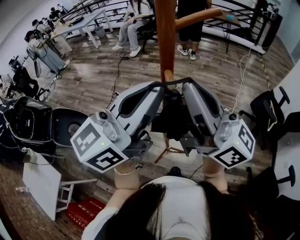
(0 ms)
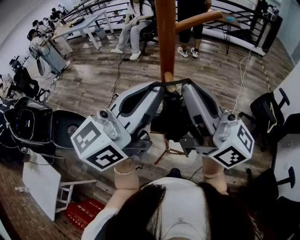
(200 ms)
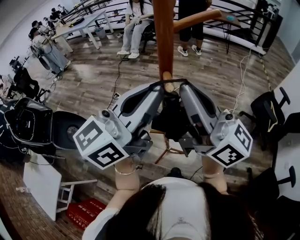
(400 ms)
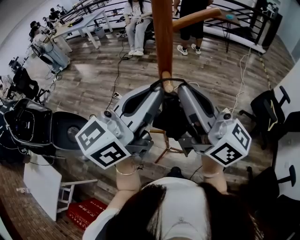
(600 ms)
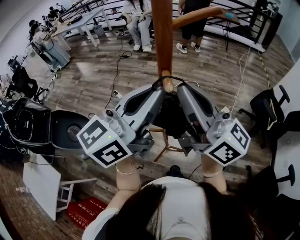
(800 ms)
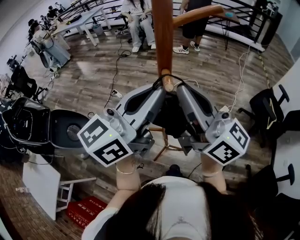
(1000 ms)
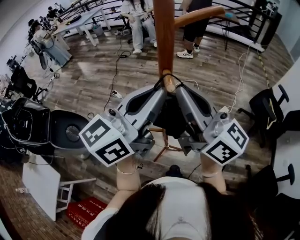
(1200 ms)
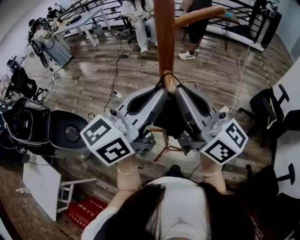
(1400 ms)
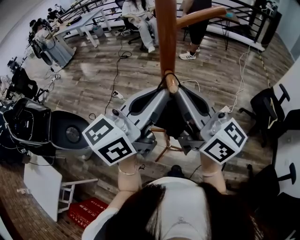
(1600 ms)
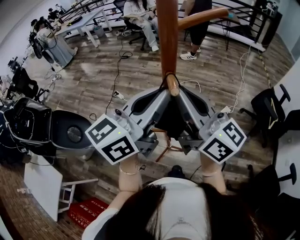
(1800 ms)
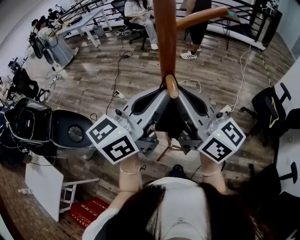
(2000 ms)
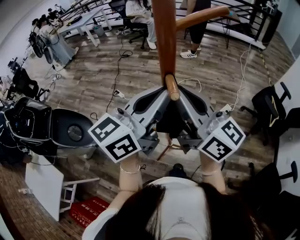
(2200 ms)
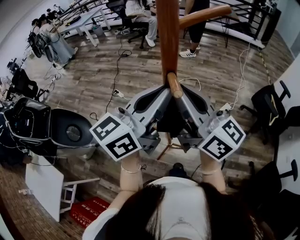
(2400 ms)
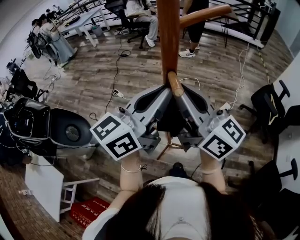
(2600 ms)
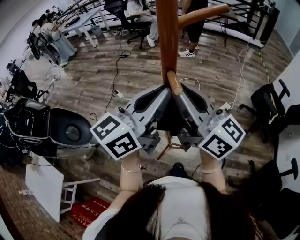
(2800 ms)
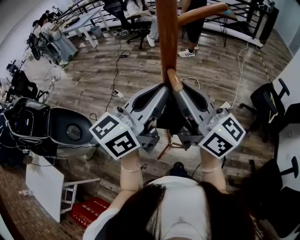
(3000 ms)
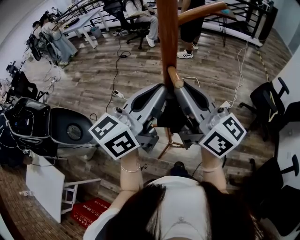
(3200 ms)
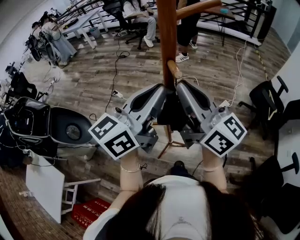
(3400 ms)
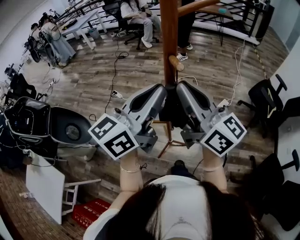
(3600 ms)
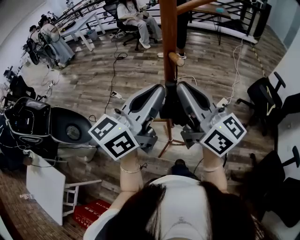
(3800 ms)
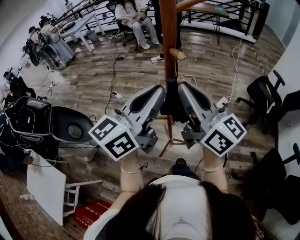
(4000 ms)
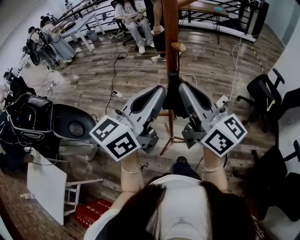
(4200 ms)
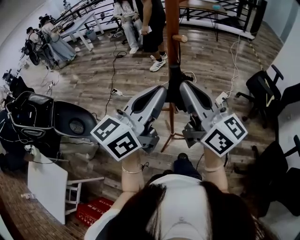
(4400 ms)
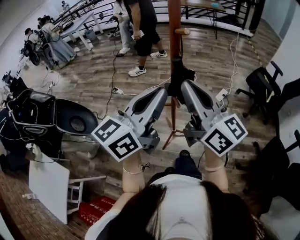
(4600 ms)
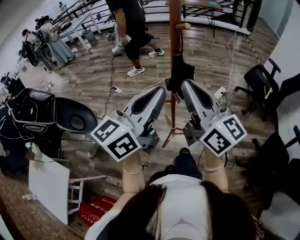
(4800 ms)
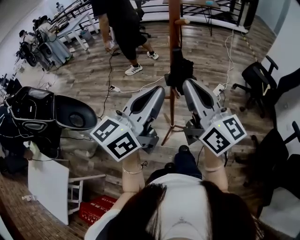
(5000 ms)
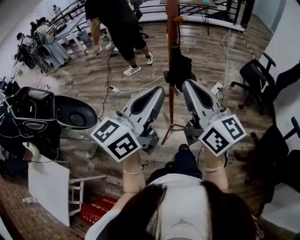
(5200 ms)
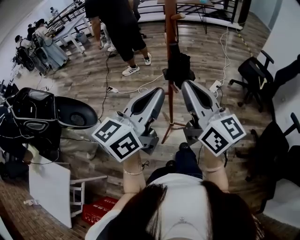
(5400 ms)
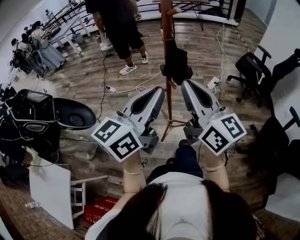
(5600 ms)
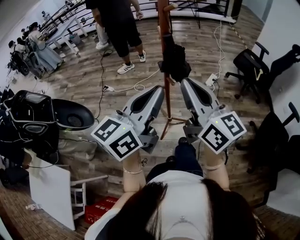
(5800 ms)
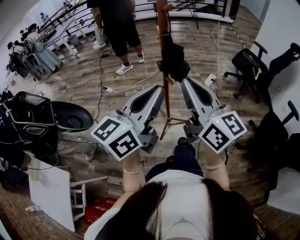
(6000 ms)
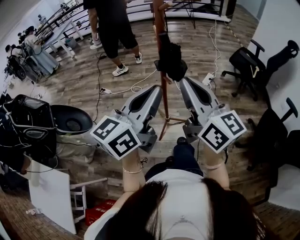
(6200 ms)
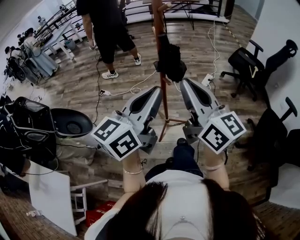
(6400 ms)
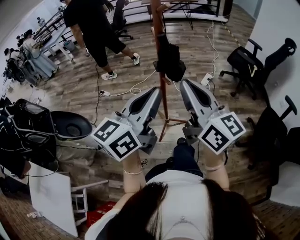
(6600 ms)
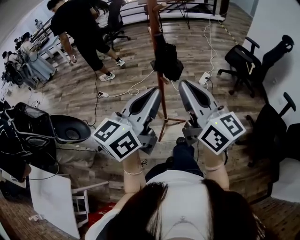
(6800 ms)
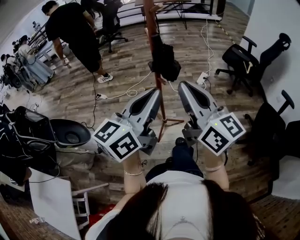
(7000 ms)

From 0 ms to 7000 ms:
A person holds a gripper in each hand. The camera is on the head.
From 0 ms to 1400 ms: The right gripper heads downward, covering approximately 5 cm. The left gripper shifts by roughly 5 cm.
From 1400 ms to 2800 ms: The grippers make only small movements.
From 2800 ms to 4200 ms: The grippers both shift backward by about 10 cm.
From 4200 ms to 5600 ms: Both grippers travel together backward, roughly 15 cm.
From 5600 ms to 7000 ms: The grippers stay close to where they were, moving slightly.

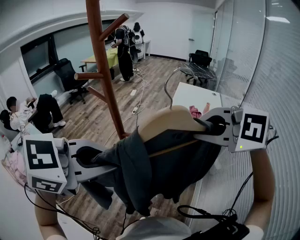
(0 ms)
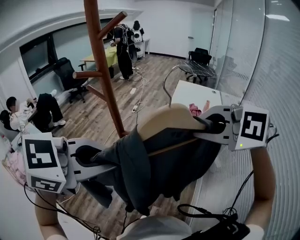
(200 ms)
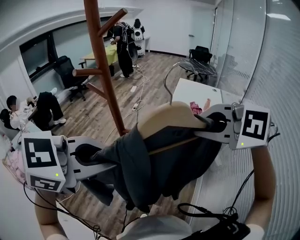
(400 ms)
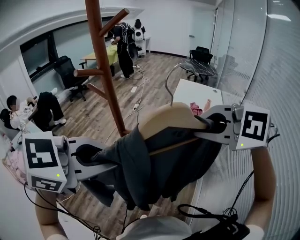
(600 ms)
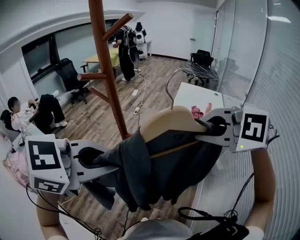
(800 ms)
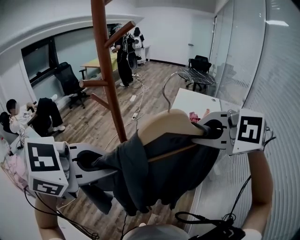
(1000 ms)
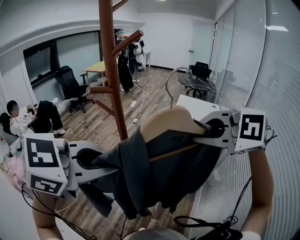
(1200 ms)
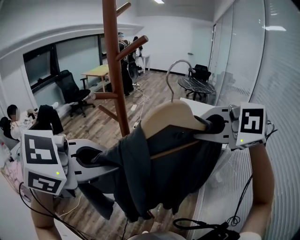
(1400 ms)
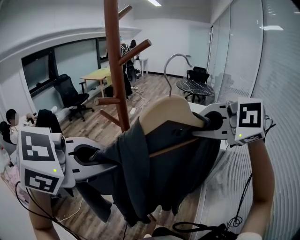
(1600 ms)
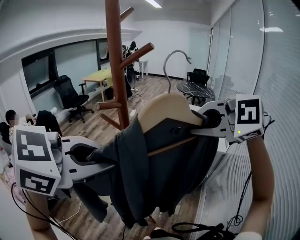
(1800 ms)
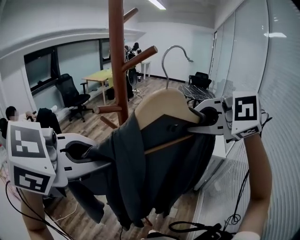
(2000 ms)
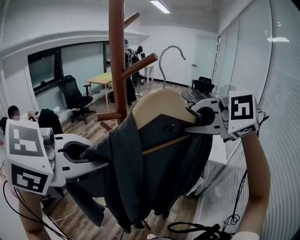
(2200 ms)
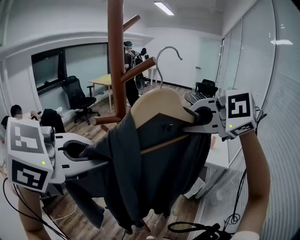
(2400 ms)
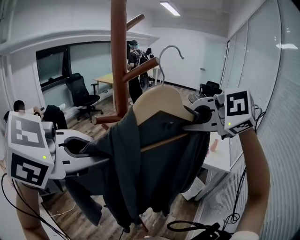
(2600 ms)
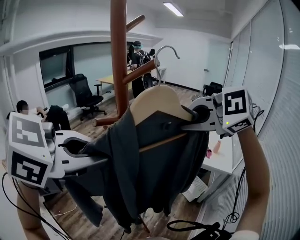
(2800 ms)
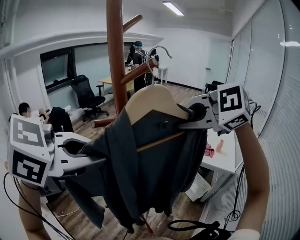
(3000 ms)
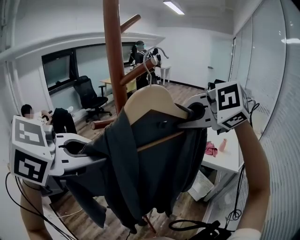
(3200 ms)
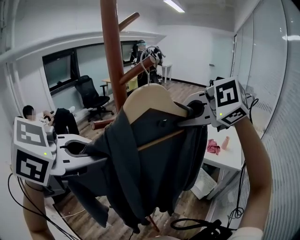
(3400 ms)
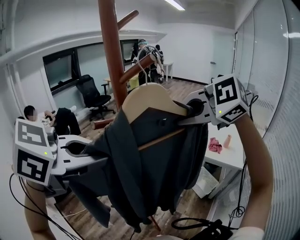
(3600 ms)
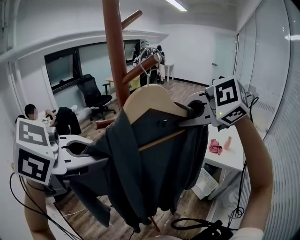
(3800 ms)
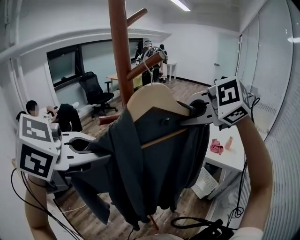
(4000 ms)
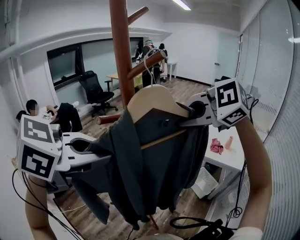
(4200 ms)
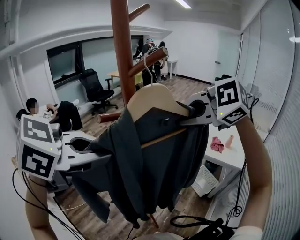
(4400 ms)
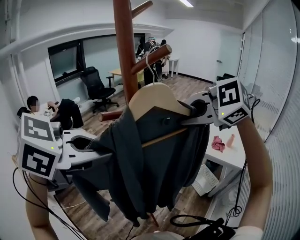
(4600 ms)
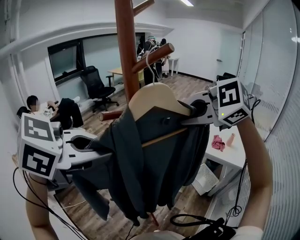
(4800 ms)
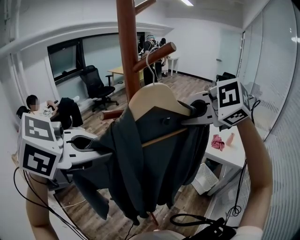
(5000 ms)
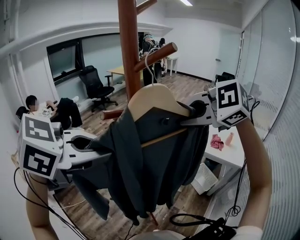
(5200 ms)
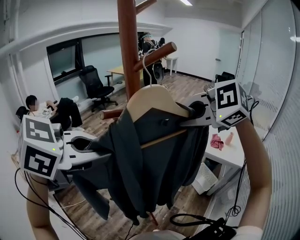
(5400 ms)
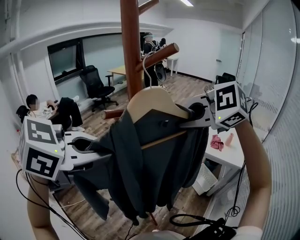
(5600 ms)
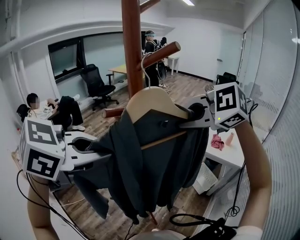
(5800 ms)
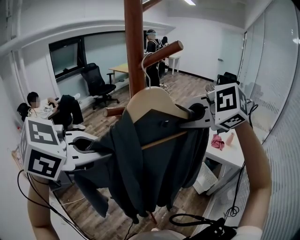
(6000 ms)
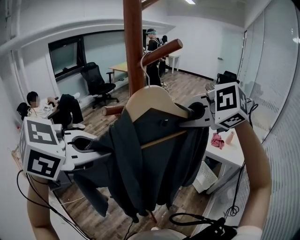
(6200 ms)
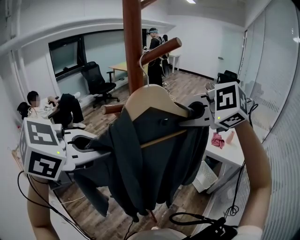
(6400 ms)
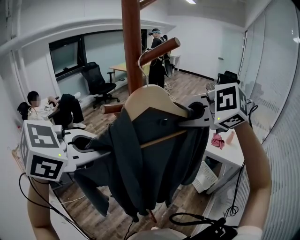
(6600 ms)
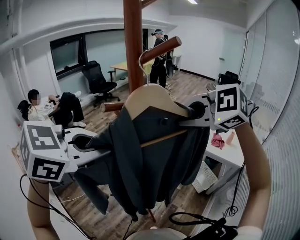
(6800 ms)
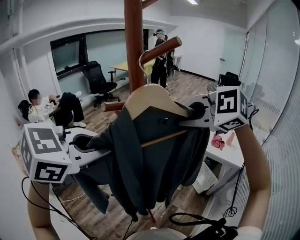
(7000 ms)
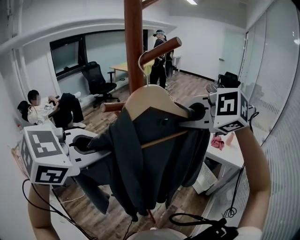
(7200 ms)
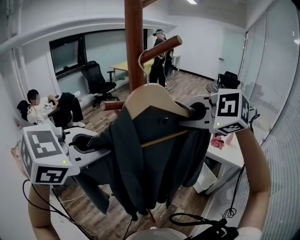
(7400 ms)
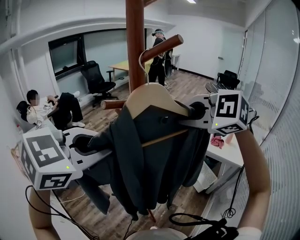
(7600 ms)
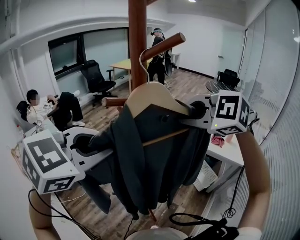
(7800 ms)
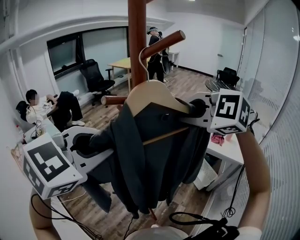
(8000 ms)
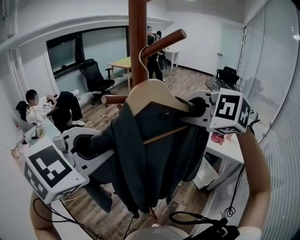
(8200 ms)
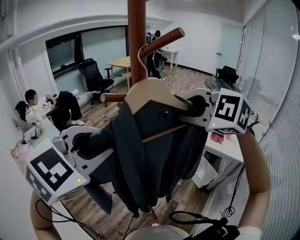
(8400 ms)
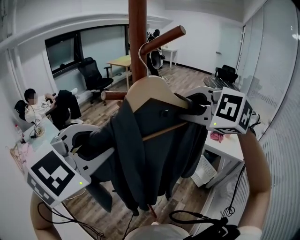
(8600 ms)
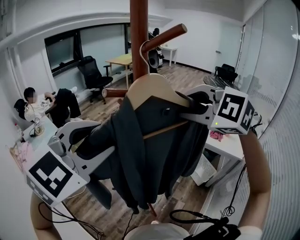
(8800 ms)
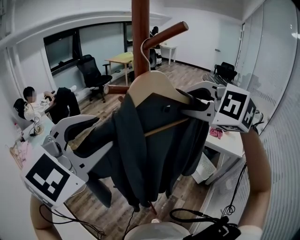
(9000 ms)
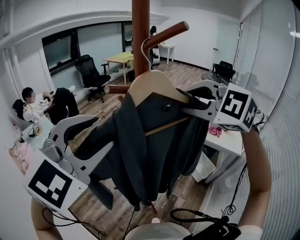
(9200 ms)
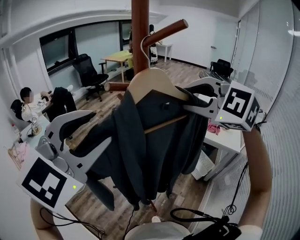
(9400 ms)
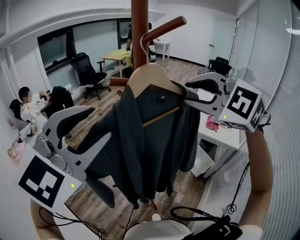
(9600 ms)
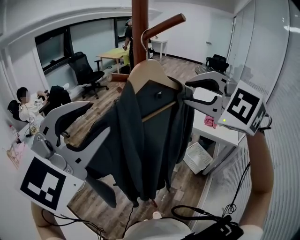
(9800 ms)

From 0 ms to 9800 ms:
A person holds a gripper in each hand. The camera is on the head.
From 0 ms to 1400 ms: The left gripper changes place by approximately 5 cm. The right gripper ends up approximately 5 cm from where it was.
From 1400 ms to 2800 ms: The left gripper moves about 5 cm. Meanwhile the right gripper travels forward and to the left by roughly 10 cm.
From 2800 ms to 4200 ms: The grippers make only small movements.
From 4200 ms to 5600 ms: Neither gripper changes place.
From 5600 ms to 7000 ms: The grippers stay close to where they were, moving slightly.
From 7000 ms to 8400 ms: There are only small adjustments of the grippers.
From 8400 ms to 9800 ms: The right gripper moves backward, some 5 cm, while the left gripper is displaced upward by approximately 5 cm, rotates roughly 20 degrees, and opens.

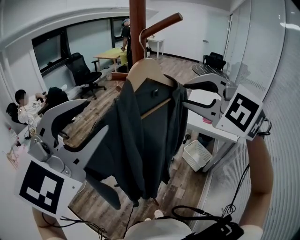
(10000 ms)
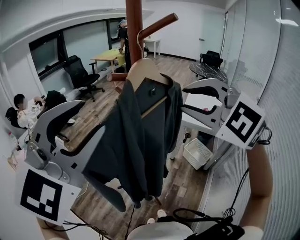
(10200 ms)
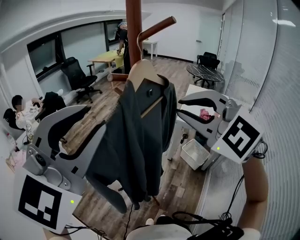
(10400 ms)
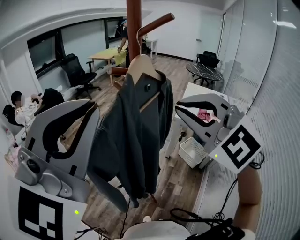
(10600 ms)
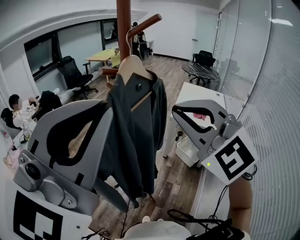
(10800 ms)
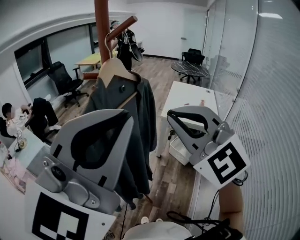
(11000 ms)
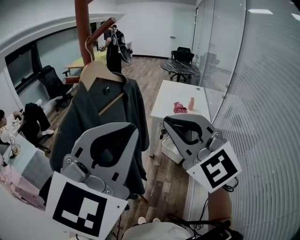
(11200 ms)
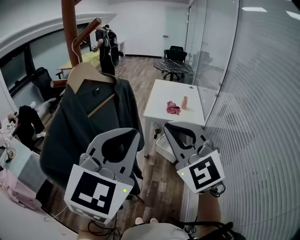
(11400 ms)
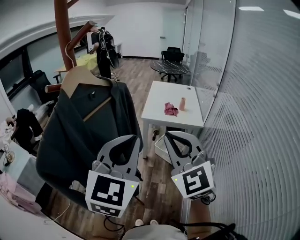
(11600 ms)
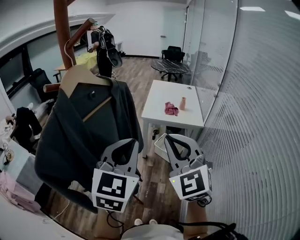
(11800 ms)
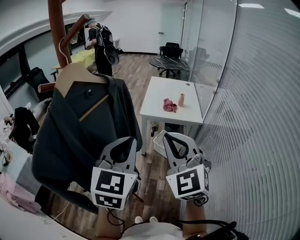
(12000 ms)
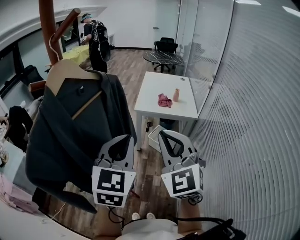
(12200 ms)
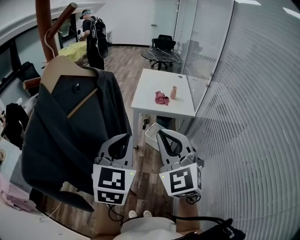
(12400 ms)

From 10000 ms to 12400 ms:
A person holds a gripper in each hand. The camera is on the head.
From 10000 ms to 11200 ms: The left gripper goes some 15 cm to the right, changes its angle by some 30 degrees, and closes, while the right gripper shifts about 10 cm backward, swivels about 30 degrees, and closes up.
From 11200 ms to 12400 ms: The right gripper goes about 10 cm downward, and turns by some 30 degrees. Meanwhile the left gripper heads downward and forward, covering approximately 15 cm.

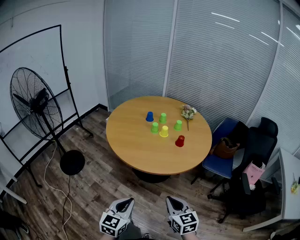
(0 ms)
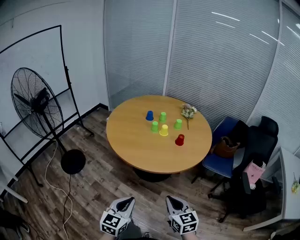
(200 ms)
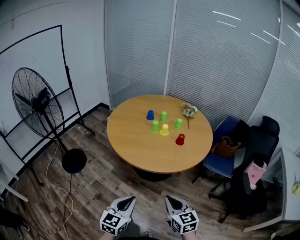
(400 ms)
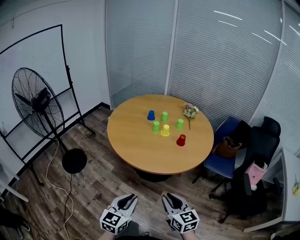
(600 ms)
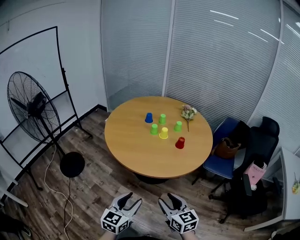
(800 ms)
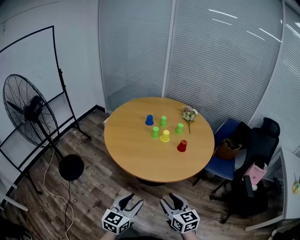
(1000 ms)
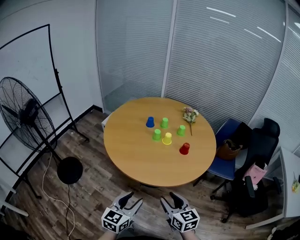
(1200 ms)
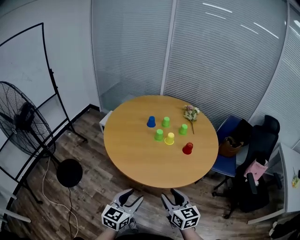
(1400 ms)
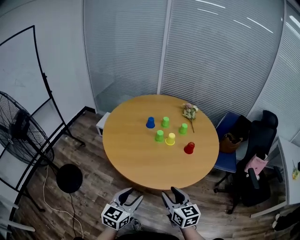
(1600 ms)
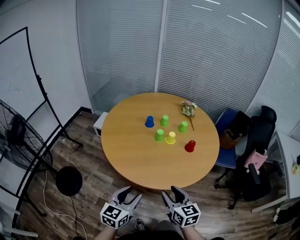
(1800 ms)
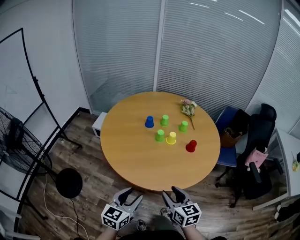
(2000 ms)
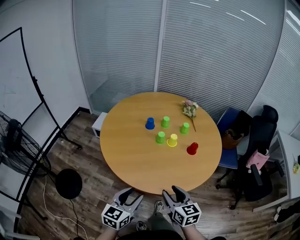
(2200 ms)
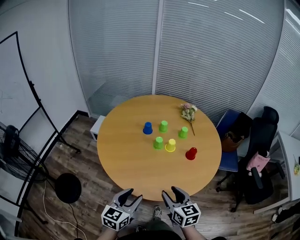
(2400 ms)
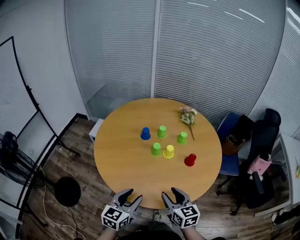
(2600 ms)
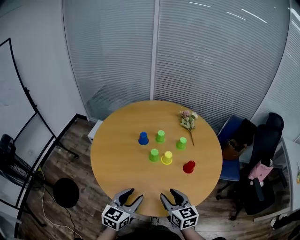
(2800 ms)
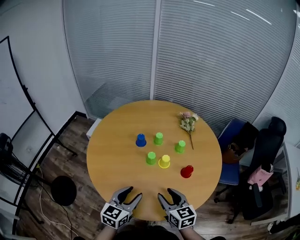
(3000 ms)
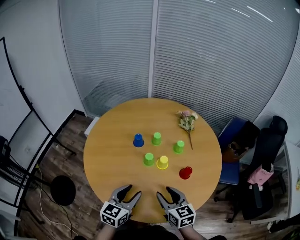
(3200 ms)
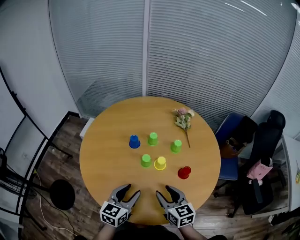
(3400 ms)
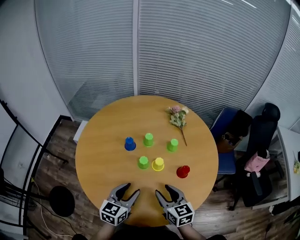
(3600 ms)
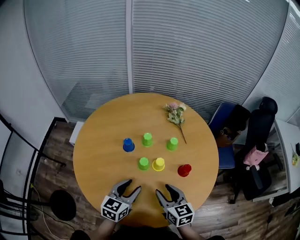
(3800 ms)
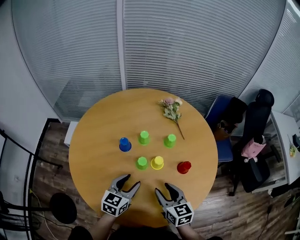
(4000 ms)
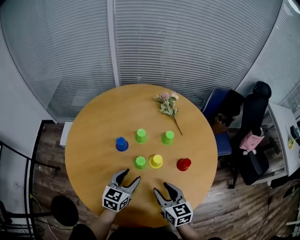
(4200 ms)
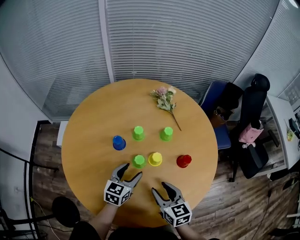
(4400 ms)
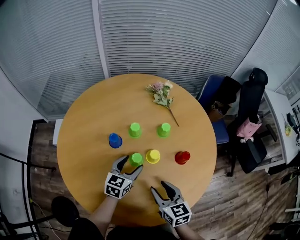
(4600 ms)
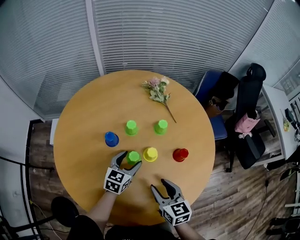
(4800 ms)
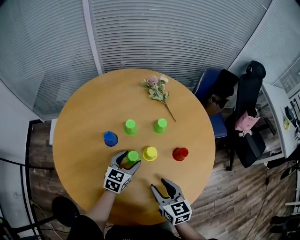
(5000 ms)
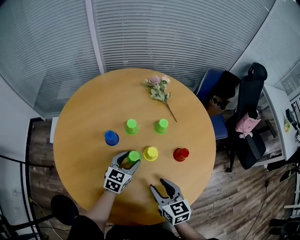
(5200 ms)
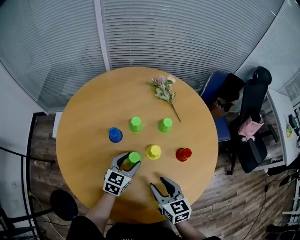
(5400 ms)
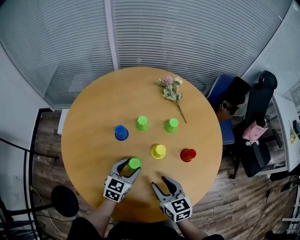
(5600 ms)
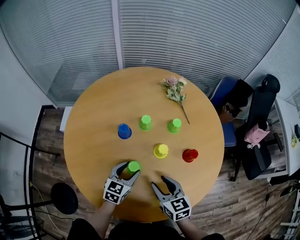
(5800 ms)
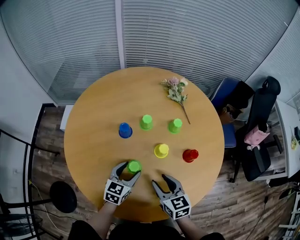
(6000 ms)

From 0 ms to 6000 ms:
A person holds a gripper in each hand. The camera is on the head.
From 0 ms to 1600 ms: Both grippers travel together forward and to the left, about 20 cm. The right gripper opens up, while the left gripper opens its fingers.
From 1600 ms to 3000 ms: Both grippers move forward, approximately 20 cm.
From 3000 ms to 4400 ms: The right gripper shifts some 10 cm forward, and rotates some 20 degrees; the left gripper is displaced forward and downward by about 25 cm, and changes its angle by approximately 20 degrees.
From 4400 ms to 6000 ms: The left gripper ends up about 5 cm from where it was.
